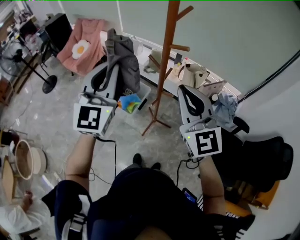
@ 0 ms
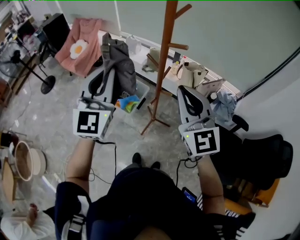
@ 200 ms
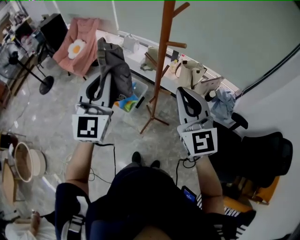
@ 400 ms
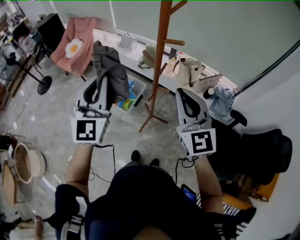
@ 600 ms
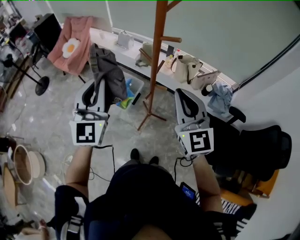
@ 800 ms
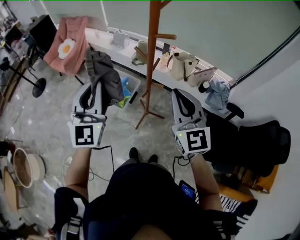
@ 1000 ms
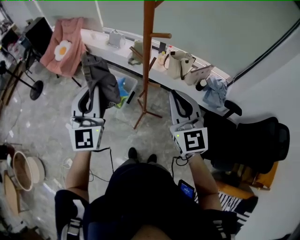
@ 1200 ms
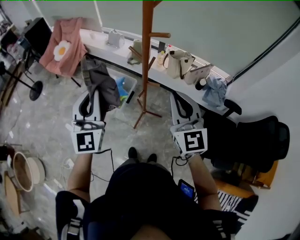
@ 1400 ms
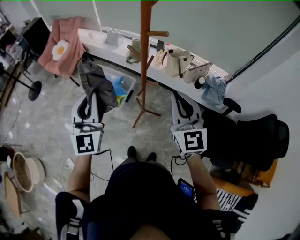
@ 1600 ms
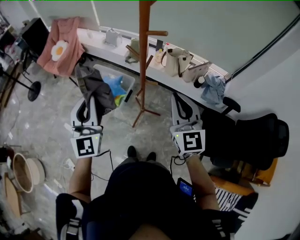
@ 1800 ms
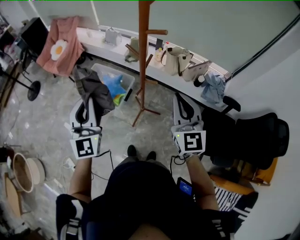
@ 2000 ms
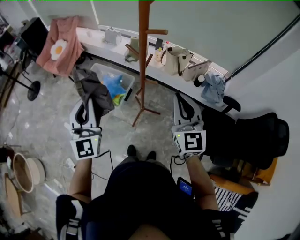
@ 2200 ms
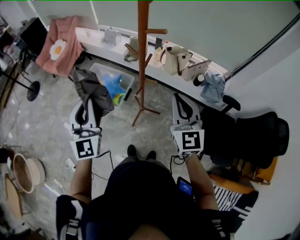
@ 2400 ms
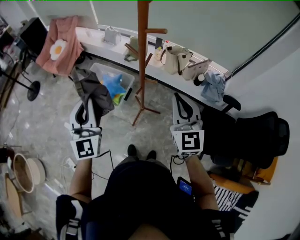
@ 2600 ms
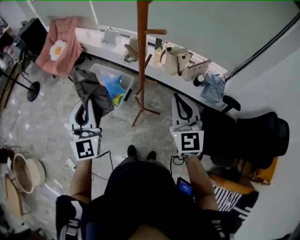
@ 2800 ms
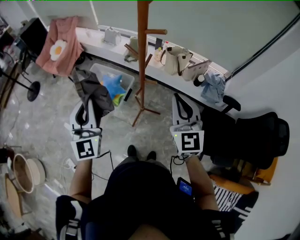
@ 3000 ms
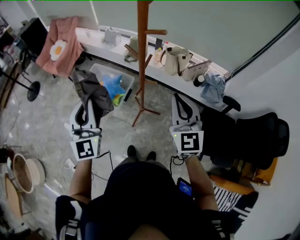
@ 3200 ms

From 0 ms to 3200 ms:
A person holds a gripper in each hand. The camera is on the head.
From 0 ms to 1600 ms: The right gripper shifts about 10 cm downward and to the right. The left gripper is displaced downward by about 10 cm.
From 1600 ms to 3200 ms: There are only small adjustments of the grippers.

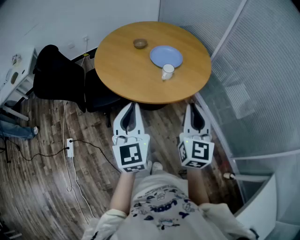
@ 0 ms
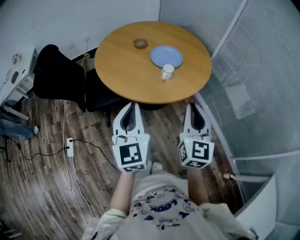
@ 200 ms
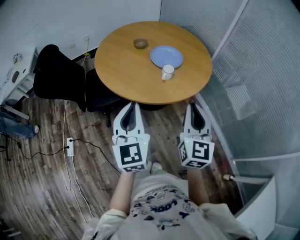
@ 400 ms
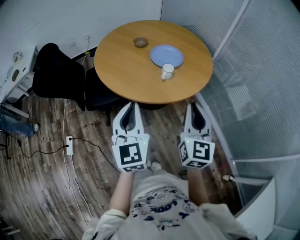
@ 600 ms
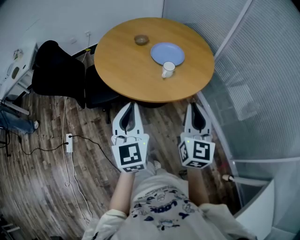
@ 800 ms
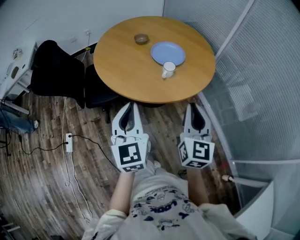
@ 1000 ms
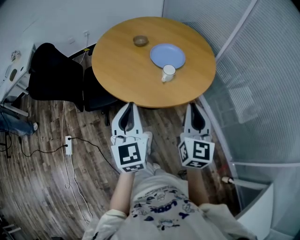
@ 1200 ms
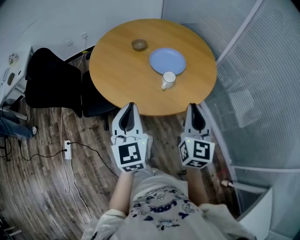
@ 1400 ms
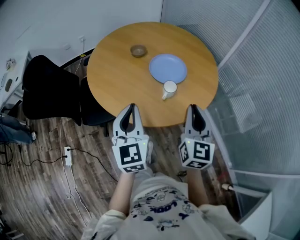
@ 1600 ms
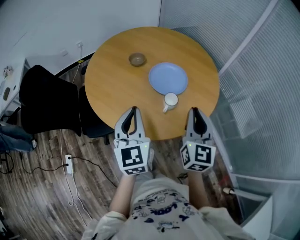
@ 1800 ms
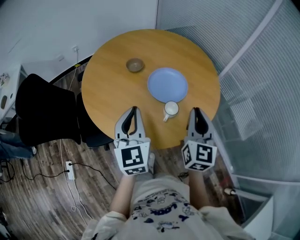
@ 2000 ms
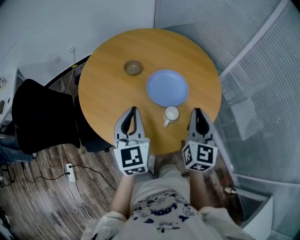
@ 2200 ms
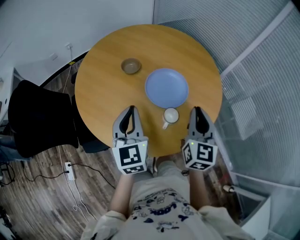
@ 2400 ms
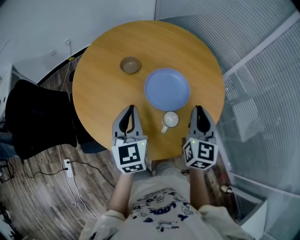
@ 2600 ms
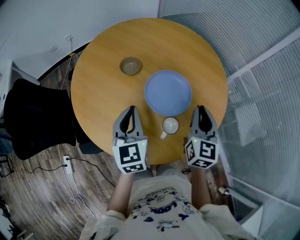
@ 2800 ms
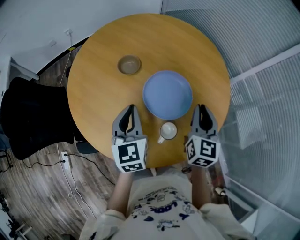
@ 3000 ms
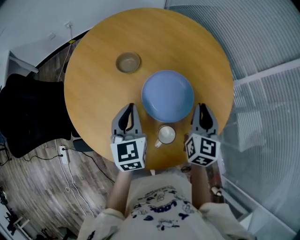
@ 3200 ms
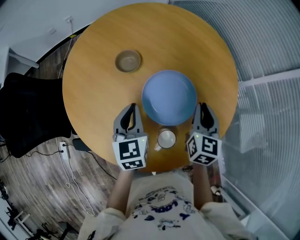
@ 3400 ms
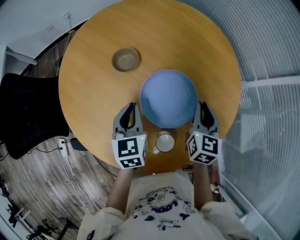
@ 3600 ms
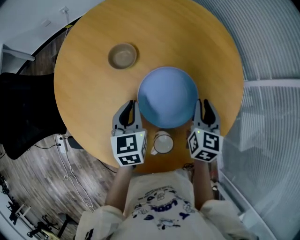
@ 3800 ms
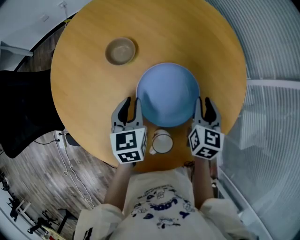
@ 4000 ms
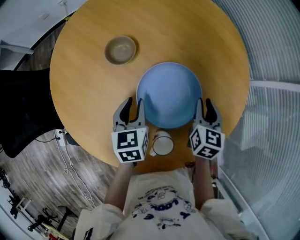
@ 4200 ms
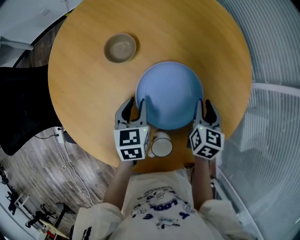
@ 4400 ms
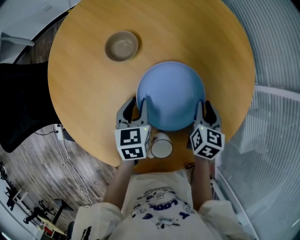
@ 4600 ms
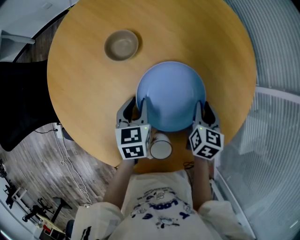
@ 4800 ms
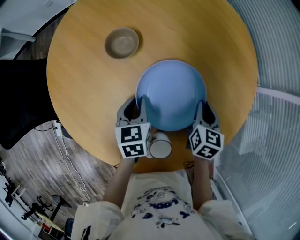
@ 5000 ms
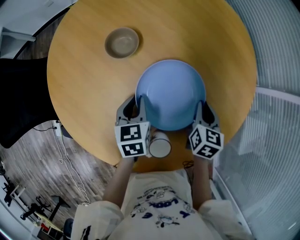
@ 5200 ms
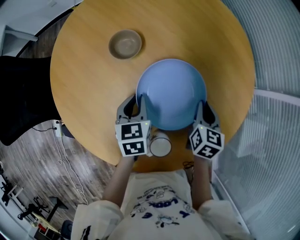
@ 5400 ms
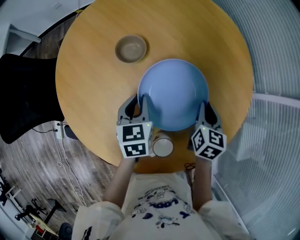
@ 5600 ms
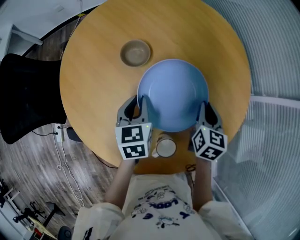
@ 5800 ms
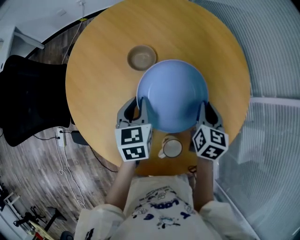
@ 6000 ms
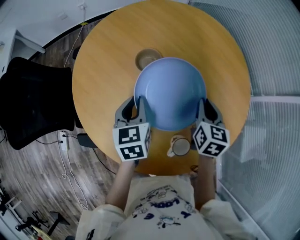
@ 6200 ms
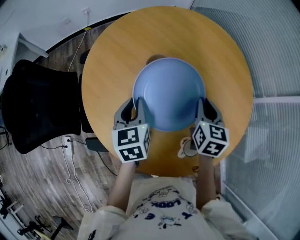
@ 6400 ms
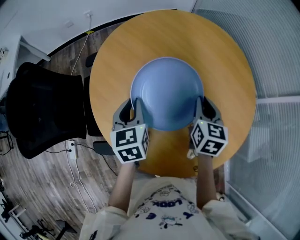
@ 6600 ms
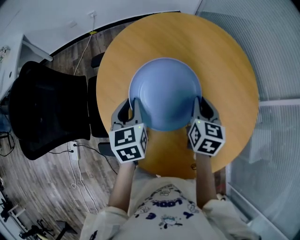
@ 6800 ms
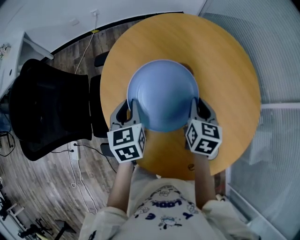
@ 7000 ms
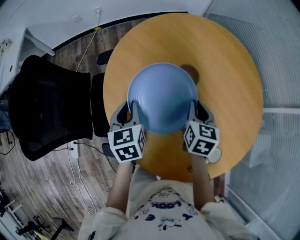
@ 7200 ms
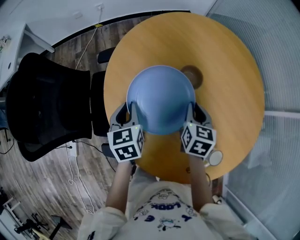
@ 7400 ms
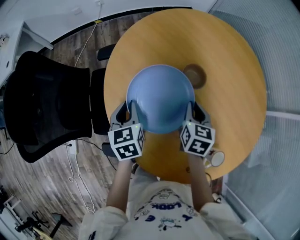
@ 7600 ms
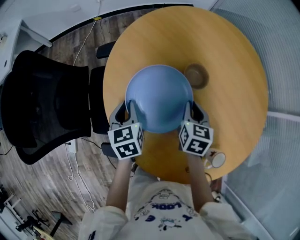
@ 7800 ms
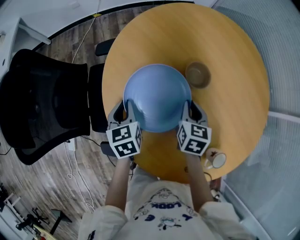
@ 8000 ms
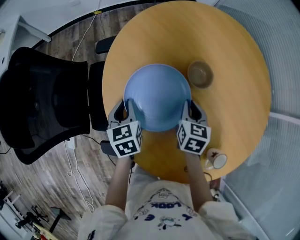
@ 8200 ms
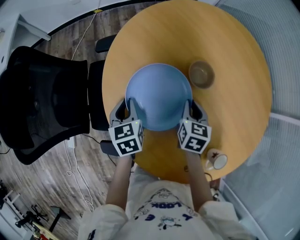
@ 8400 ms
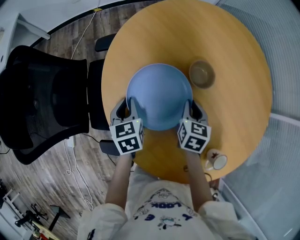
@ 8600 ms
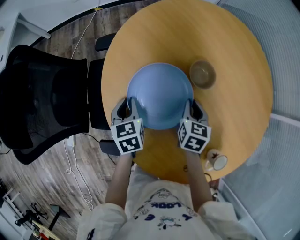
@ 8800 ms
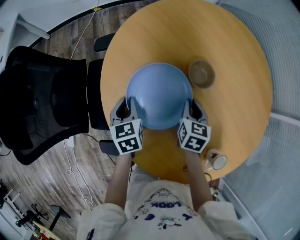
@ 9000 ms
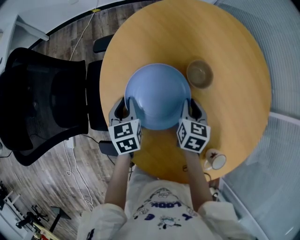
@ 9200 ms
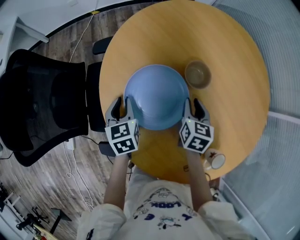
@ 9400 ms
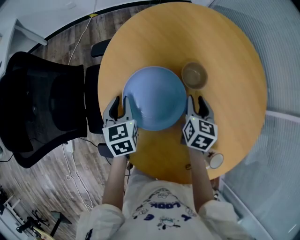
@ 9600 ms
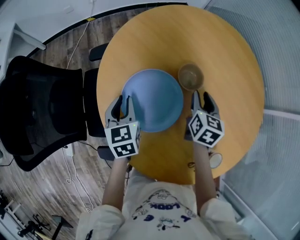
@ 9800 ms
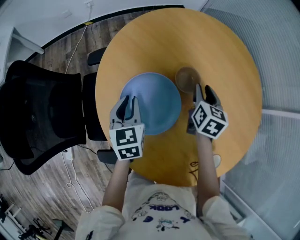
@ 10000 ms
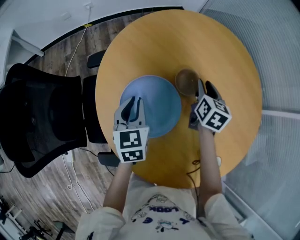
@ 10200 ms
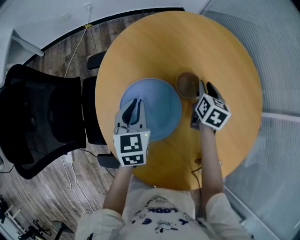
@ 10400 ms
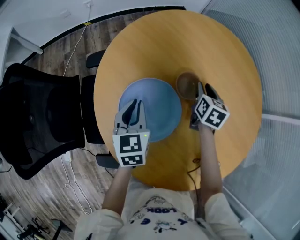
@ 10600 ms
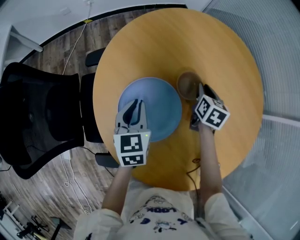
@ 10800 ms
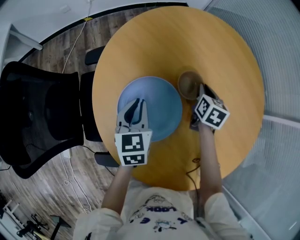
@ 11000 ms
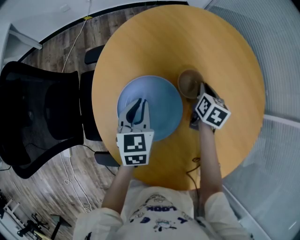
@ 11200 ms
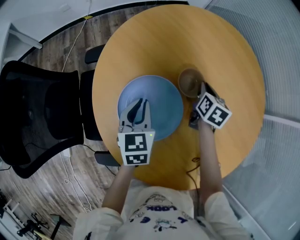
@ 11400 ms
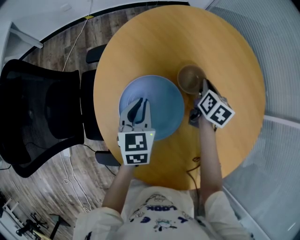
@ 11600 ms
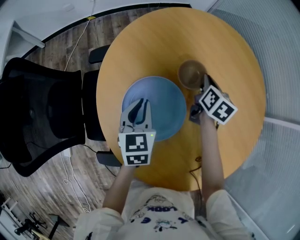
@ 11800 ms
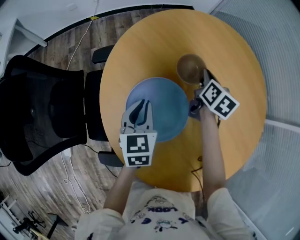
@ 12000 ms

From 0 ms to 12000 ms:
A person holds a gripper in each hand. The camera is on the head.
From 0 ms to 1600 ms: Both grippers move forward, some 15 cm.
From 1600 ms to 3000 ms: Both grippers travel together forward, about 25 cm.
From 3000 ms to 4400 ms: The left gripper goes some 20 cm downward, swivels approximately 20 degrees, and opens up; the right gripper goes about 20 cm downward and forward, and rotates approximately 20 degrees.
From 4400 ms to 6000 ms: The grippers both shift upward and to the left by some 10 cm.
From 6000 ms to 7600 ms: Both grippers move to the left, approximately 25 cm.
From 7600 ms to 9000 ms: Both grippers travel together downward, some 5 cm.
From 9000 ms to 10400 ms: The right gripper moves forward, to the right and upward, approximately 15 cm, and opens up; the left gripper travels upward, to the right and forward by approximately 15 cm.
From 10400 ms to 12000 ms: The right gripper moves to the left and forward, approximately 10 cm, and closes.

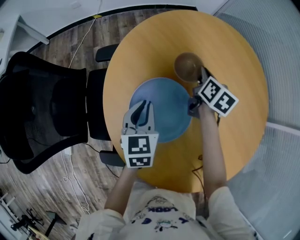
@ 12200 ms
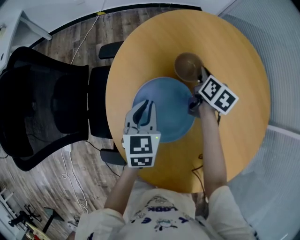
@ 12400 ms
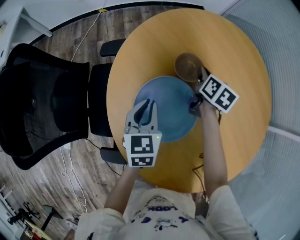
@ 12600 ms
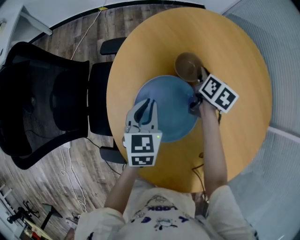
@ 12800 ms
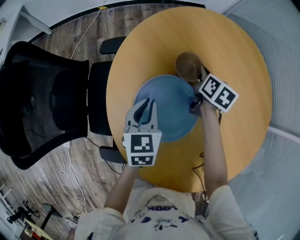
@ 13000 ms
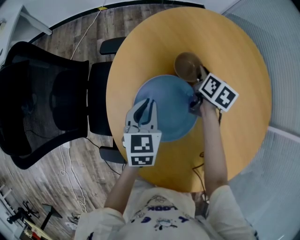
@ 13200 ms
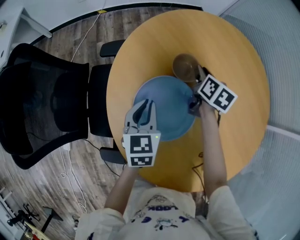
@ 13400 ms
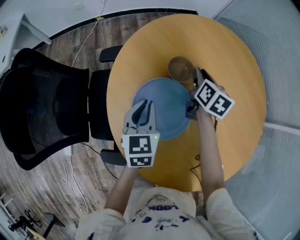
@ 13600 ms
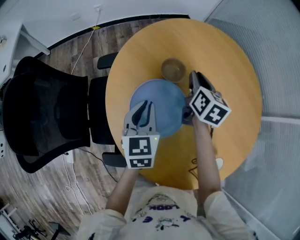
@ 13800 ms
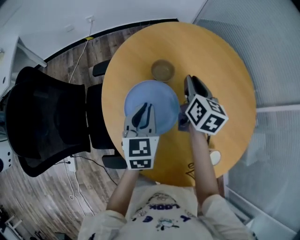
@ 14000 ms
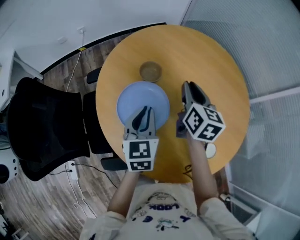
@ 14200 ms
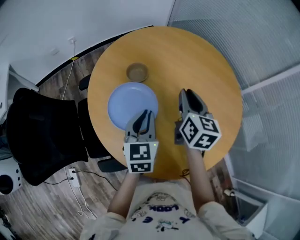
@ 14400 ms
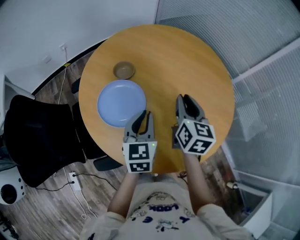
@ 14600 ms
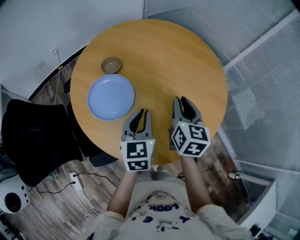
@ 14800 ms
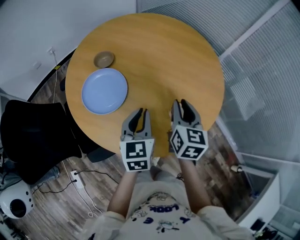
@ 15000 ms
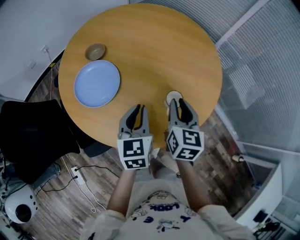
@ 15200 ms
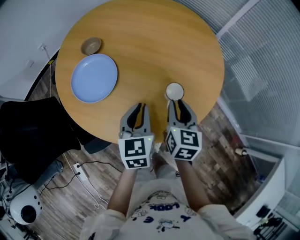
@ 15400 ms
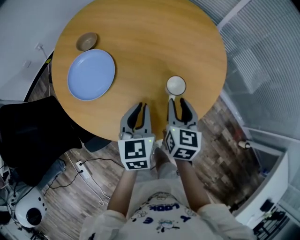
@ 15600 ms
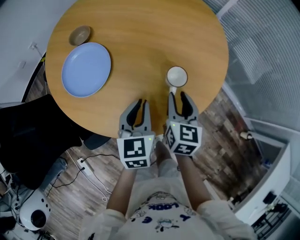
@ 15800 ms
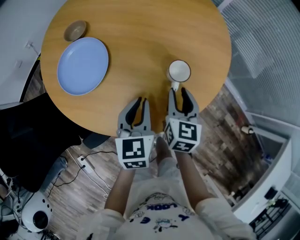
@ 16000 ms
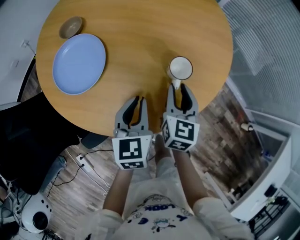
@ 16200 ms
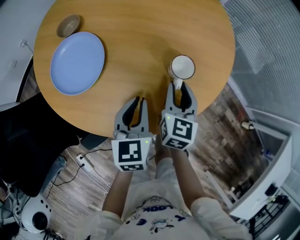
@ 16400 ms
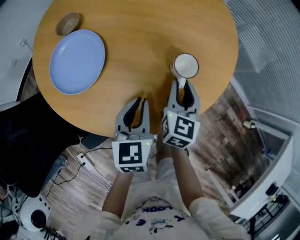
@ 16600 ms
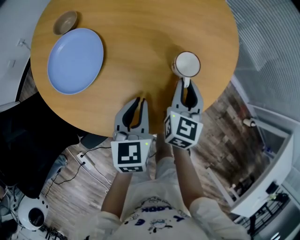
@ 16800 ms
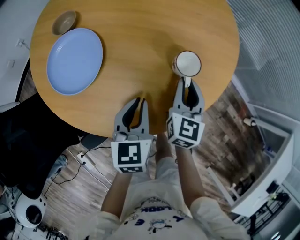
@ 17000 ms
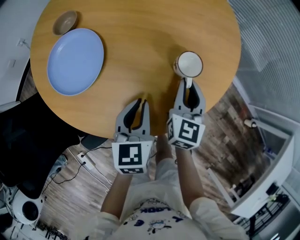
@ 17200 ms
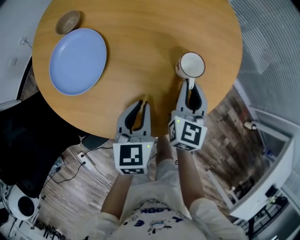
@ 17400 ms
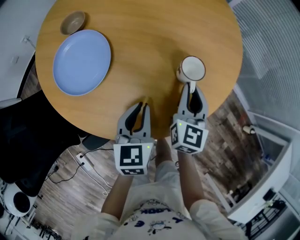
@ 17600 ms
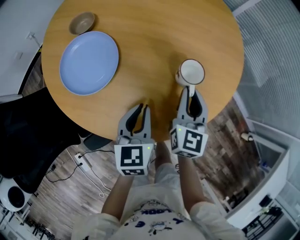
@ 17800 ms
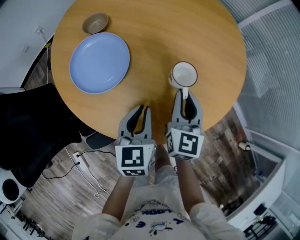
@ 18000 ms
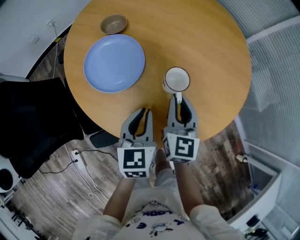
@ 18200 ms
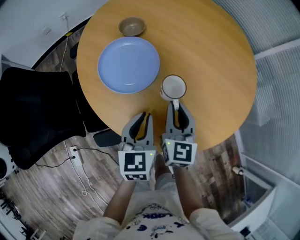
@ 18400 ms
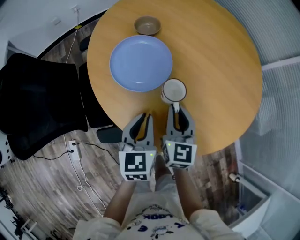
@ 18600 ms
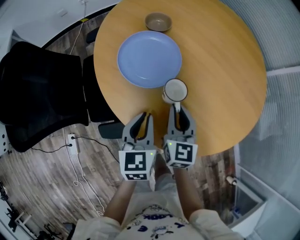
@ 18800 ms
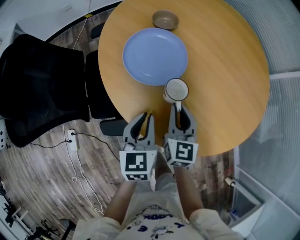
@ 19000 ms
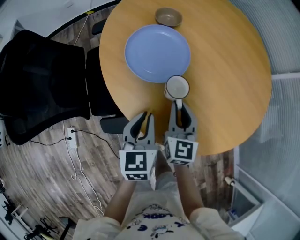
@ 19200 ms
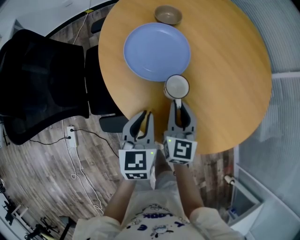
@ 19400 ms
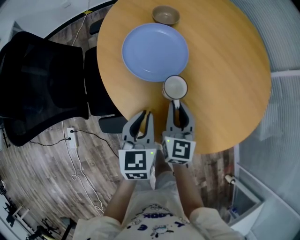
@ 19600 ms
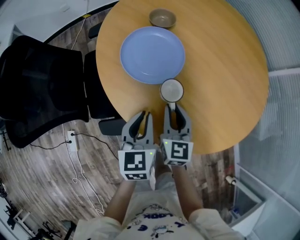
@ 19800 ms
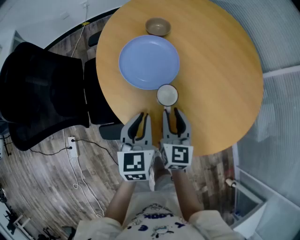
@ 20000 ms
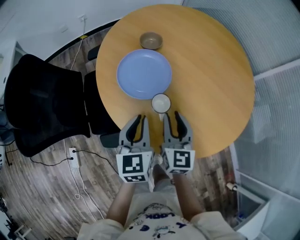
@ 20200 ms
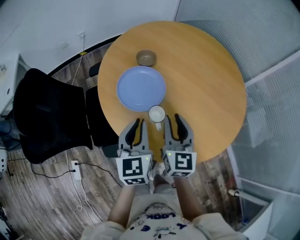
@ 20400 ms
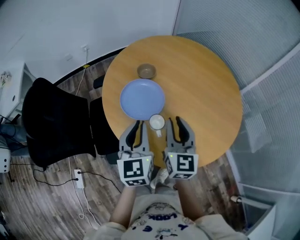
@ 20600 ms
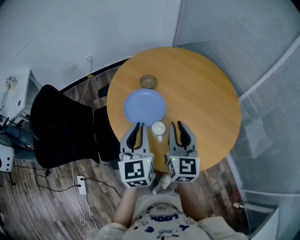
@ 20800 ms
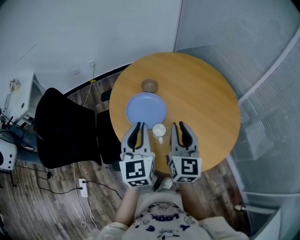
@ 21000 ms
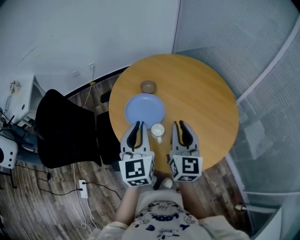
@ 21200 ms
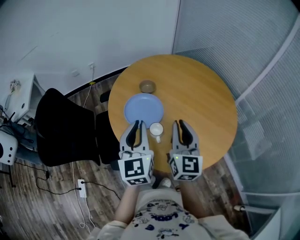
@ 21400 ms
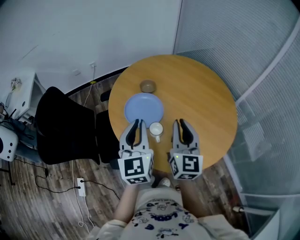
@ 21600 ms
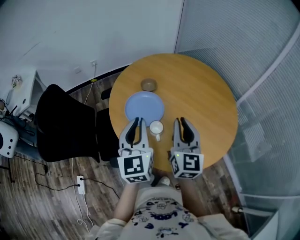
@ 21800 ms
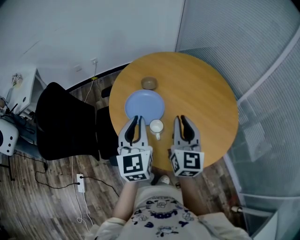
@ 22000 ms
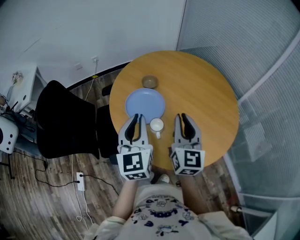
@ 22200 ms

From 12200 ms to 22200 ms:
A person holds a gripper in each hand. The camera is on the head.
From 12200 ms to 13600 ms: The grippers make only small movements.
From 13600 ms to 15000 ms: The right gripper heads backward and to the right, covering approximately 40 cm, and turns by some 20 degrees, while the left gripper travels to the right and backward by about 30 cm, and swivels some 30 degrees.
From 15000 ms to 16400 ms: The two grippers go some 15 cm downward and backward.
From 16400 ms to 18000 ms: The right gripper goes some 5 cm to the left.
From 18000 ms to 19400 ms: The two grippers go about 15 cm to the left. The left gripper changes its angle by some 20 degrees; the right gripper rotates approximately 30 degrees.
From 19400 ms to 20800 ms: Both grippers move upward, some 20 cm. The left gripper swivels approximately 20 degrees.
From 20800 ms to 22200 ms: The right gripper shifts by approximately 5 cm.
